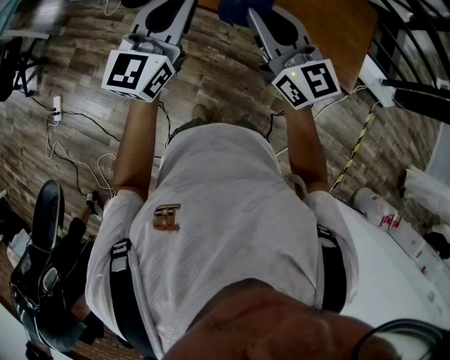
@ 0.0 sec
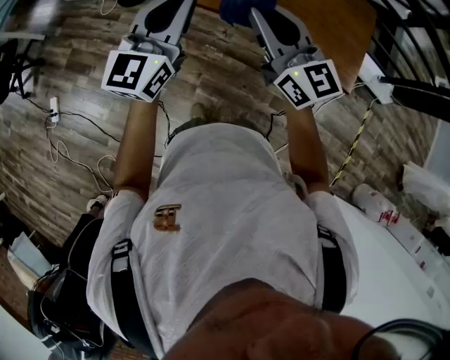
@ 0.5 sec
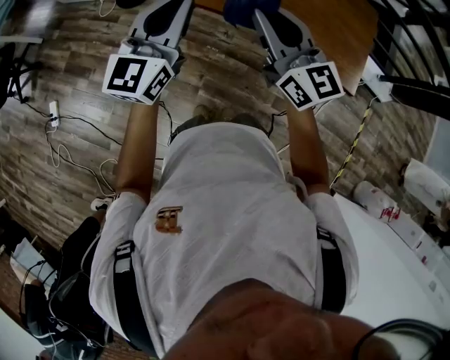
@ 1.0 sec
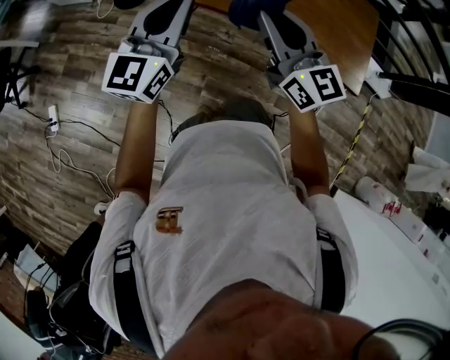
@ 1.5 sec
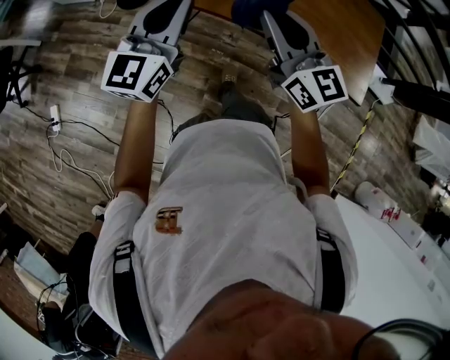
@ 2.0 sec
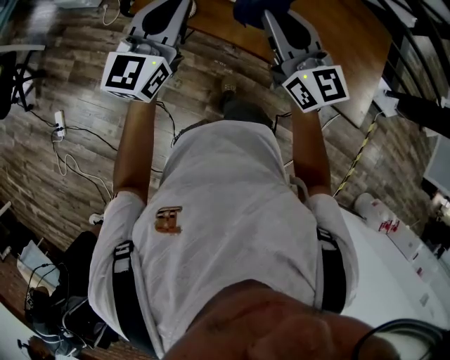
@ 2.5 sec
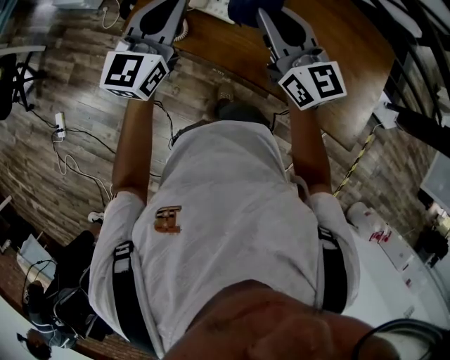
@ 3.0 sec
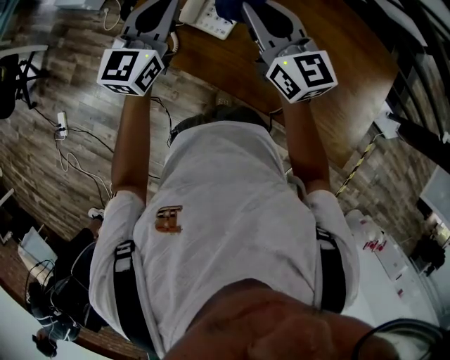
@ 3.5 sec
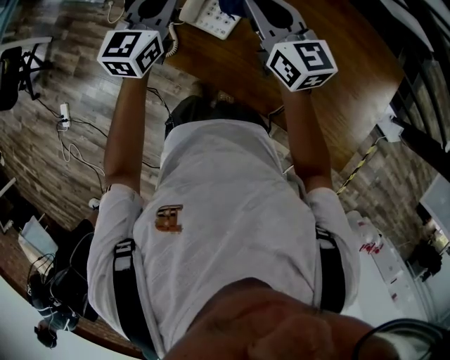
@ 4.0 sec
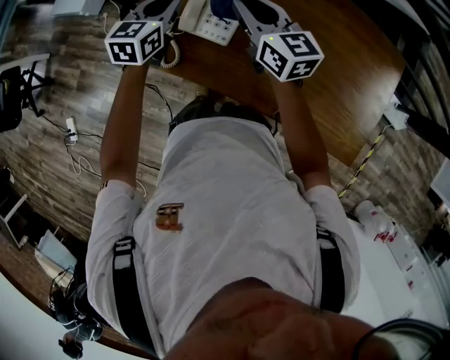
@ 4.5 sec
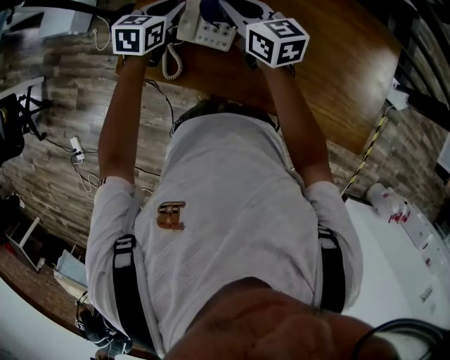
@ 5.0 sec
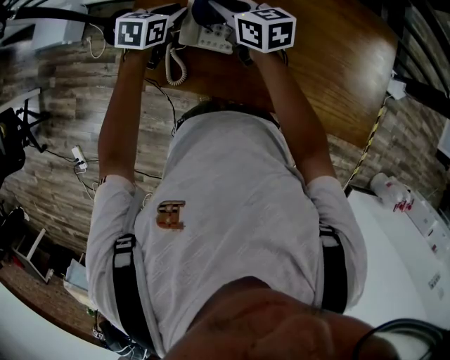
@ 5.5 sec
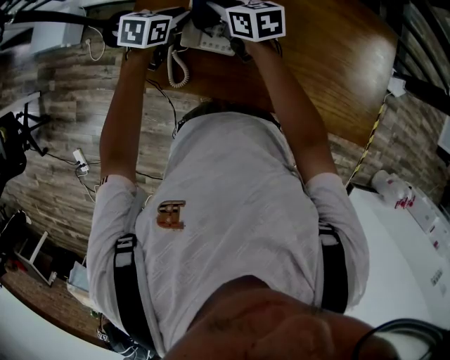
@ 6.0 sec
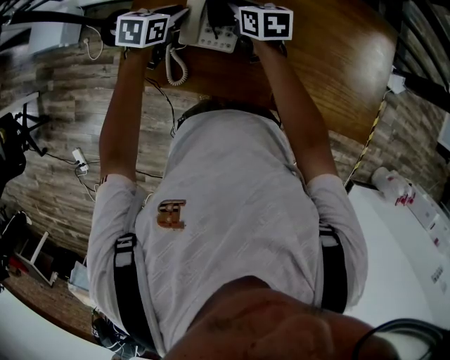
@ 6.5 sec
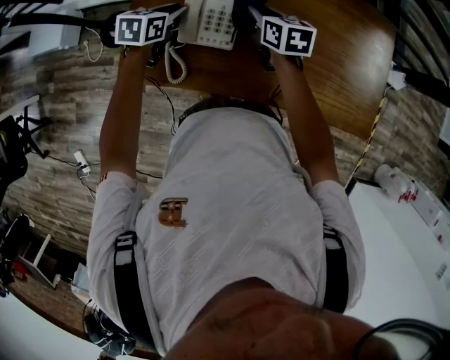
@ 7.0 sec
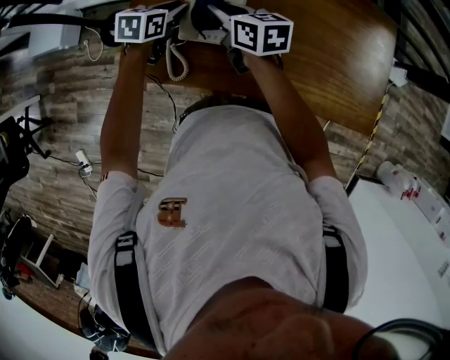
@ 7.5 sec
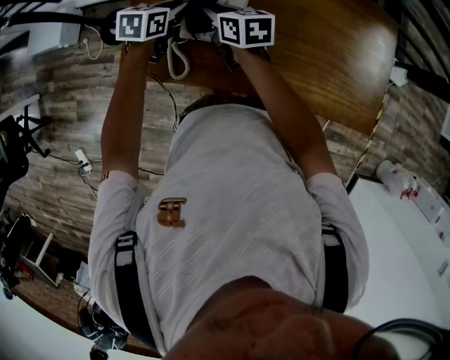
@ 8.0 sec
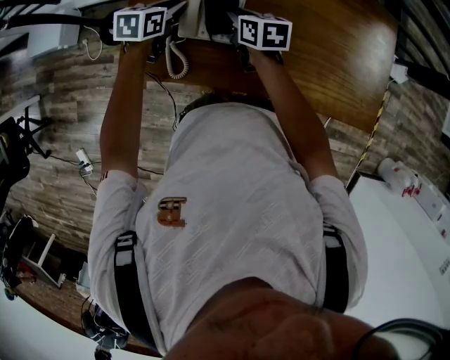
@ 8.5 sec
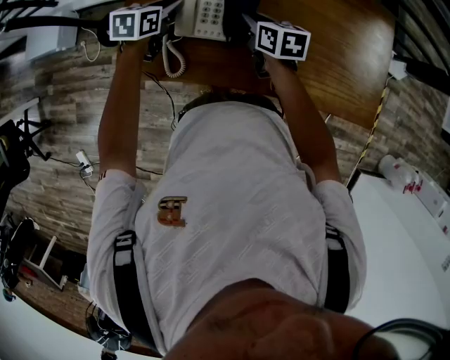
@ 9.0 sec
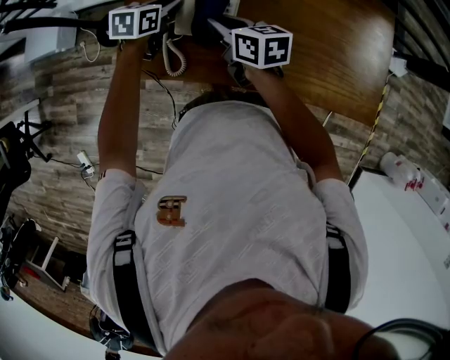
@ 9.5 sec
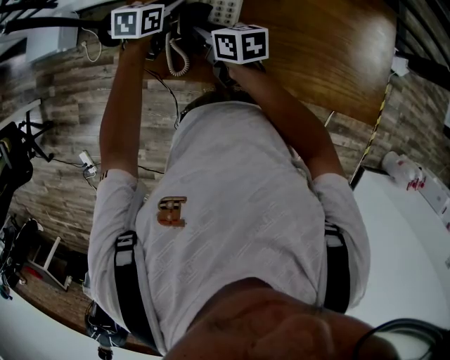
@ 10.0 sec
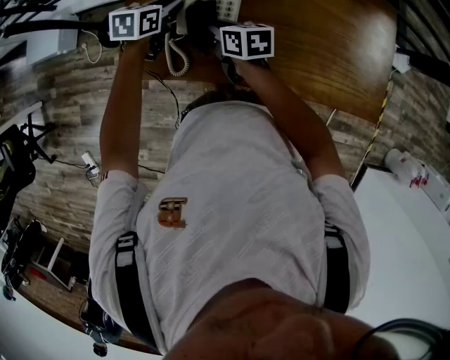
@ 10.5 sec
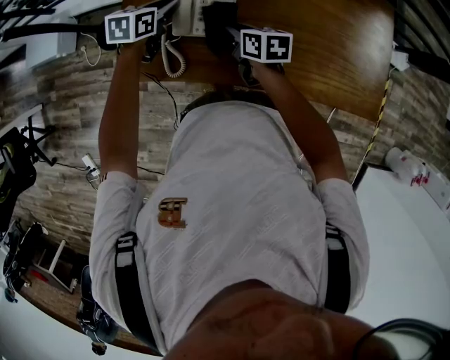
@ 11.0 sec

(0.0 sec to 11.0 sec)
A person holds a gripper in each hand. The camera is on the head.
0.0 sec - 2.0 sec: The left gripper goes approximately 15 cm to the left and forward. Meanwhile the right gripper travels forward and to the left by approximately 15 cm.
2.0 sec - 3.5 sec: The two grippers go some 35 cm forward.
3.5 sec - 5.5 sec: The left gripper travels downward and forward by some 25 cm, and angles its fingers downward, by roughly 40 degrees, while the right gripper heads forward, downward and to the left, covering about 25 cm, and swivels roughly 30 degrees.
5.5 sec - 7.5 sec: The right gripper travels to the right and back again, roughly 10 cm each way.
7.5 sec - 9.0 sec: The right gripper goes some 10 cm to the right and downward.
9.0 sec - 11.0 sec: The right gripper moves about 15 cm to the left and comes back.

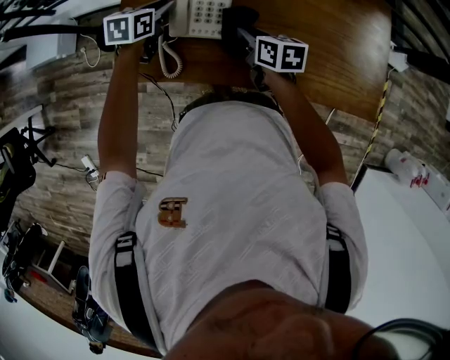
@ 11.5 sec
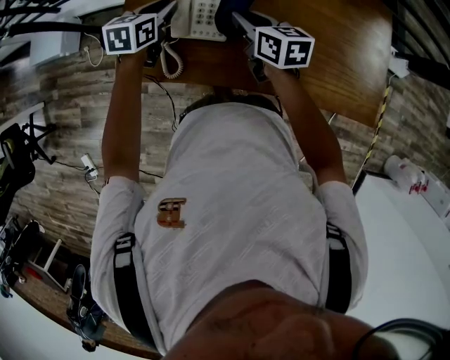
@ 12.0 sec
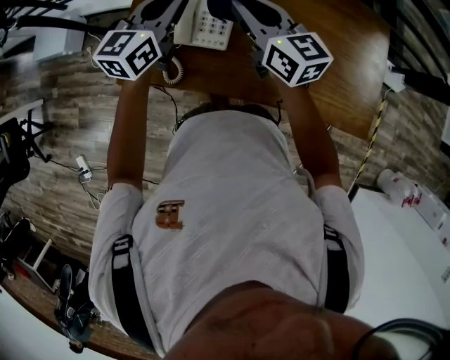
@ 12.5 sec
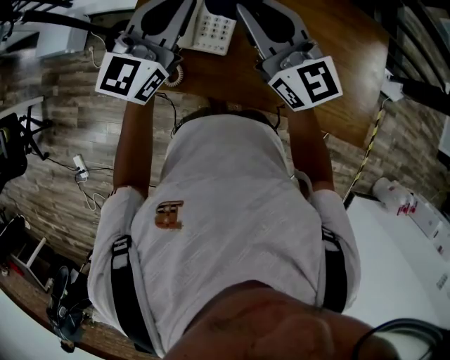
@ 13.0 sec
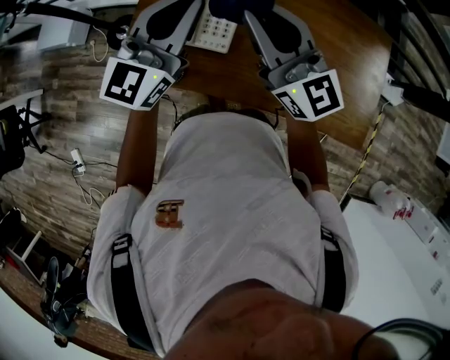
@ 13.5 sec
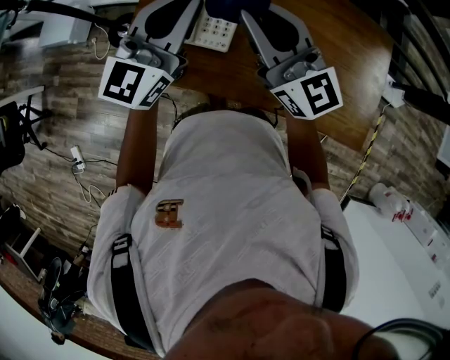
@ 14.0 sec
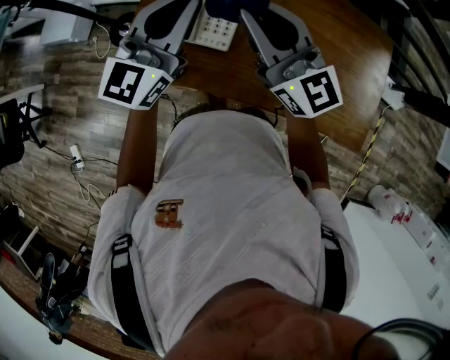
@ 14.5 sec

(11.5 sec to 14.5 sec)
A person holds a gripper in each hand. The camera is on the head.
11.5 sec - 13.0 sec: The two grippers go some 30 cm upward. The left gripper angles its fingers upward, by roughly 50 degrees; the right gripper angles its fingers upward, by roughly 40 degrees.
13.0 sec - 14.5 sec: There are only small adjustments of the grippers.

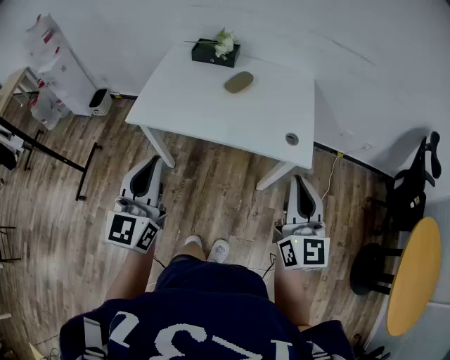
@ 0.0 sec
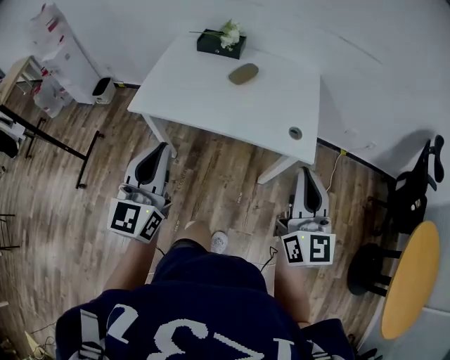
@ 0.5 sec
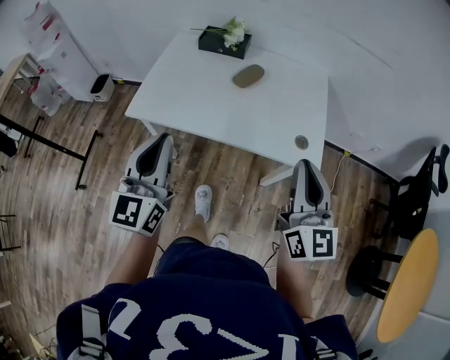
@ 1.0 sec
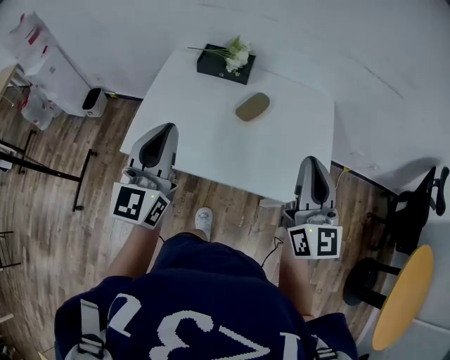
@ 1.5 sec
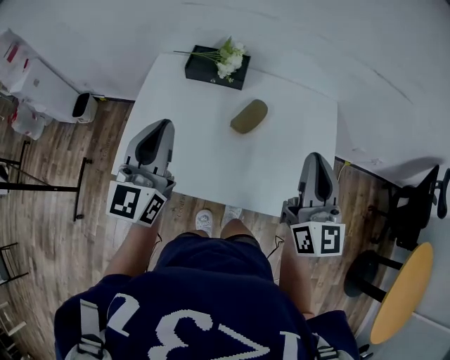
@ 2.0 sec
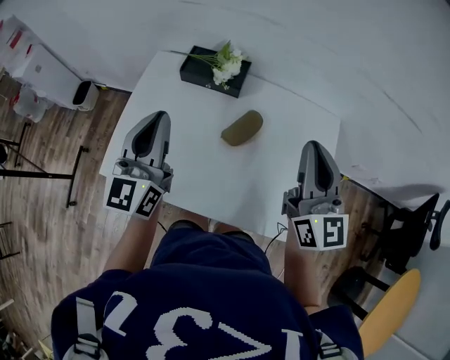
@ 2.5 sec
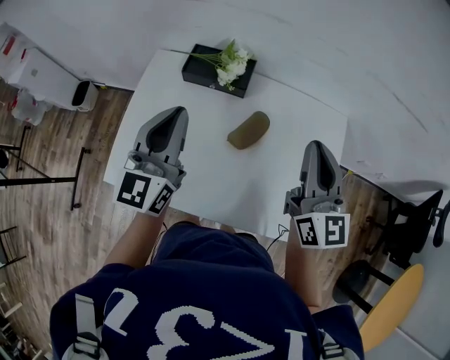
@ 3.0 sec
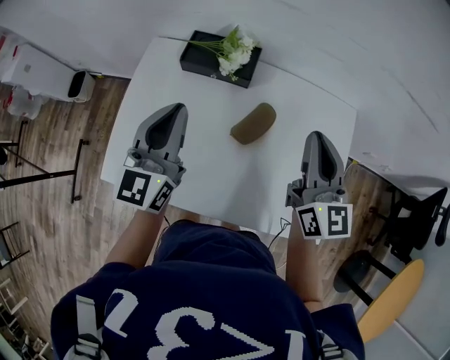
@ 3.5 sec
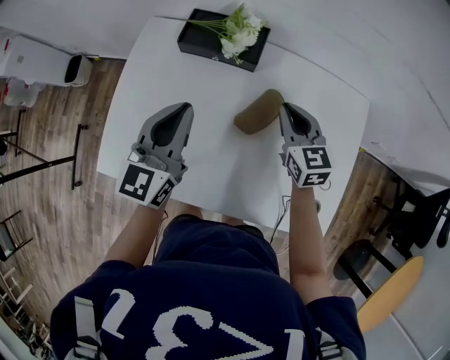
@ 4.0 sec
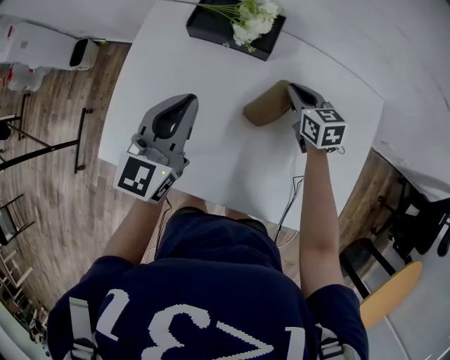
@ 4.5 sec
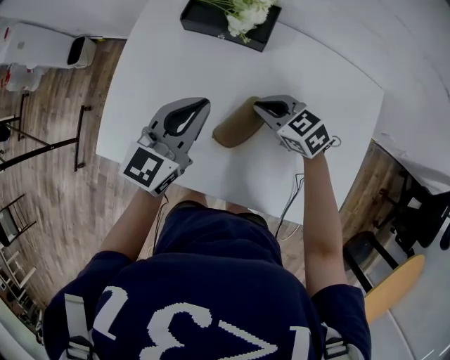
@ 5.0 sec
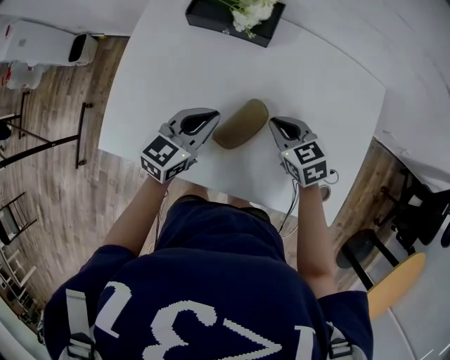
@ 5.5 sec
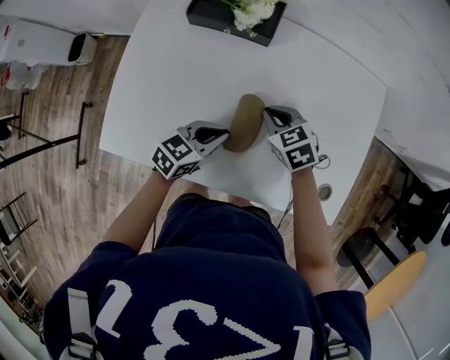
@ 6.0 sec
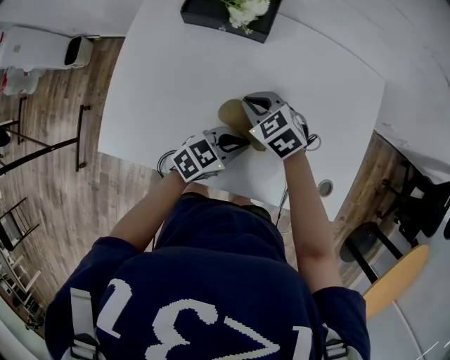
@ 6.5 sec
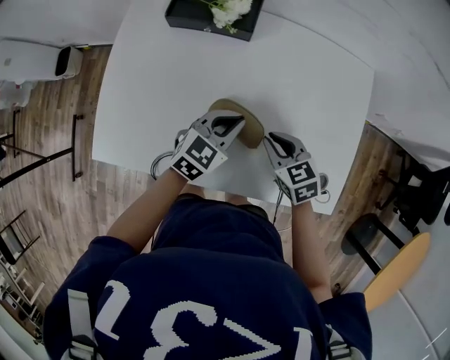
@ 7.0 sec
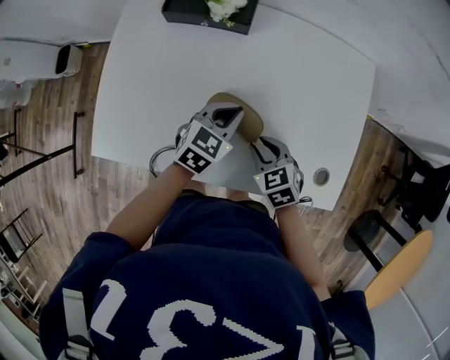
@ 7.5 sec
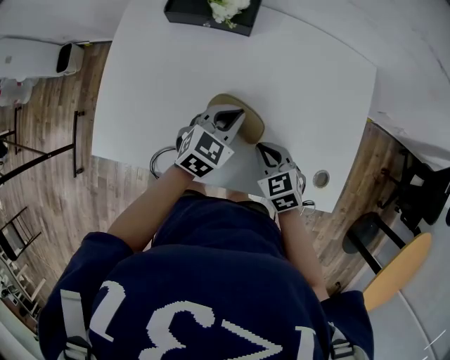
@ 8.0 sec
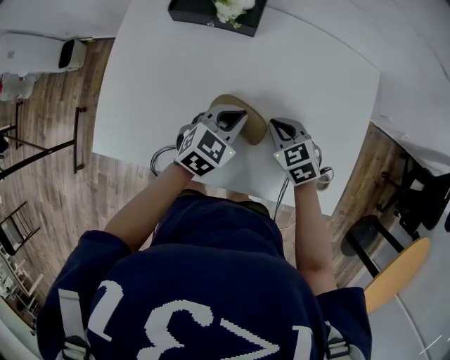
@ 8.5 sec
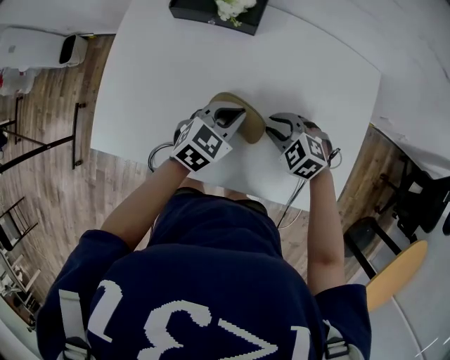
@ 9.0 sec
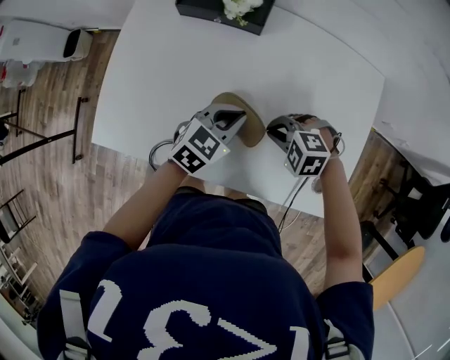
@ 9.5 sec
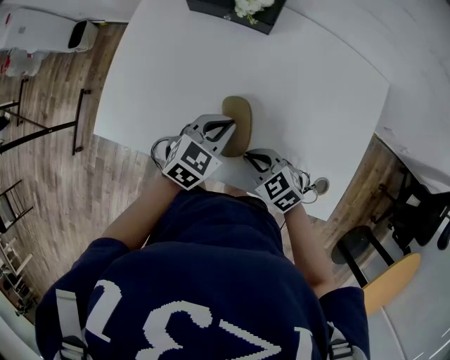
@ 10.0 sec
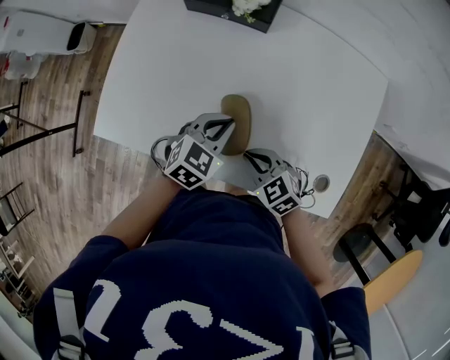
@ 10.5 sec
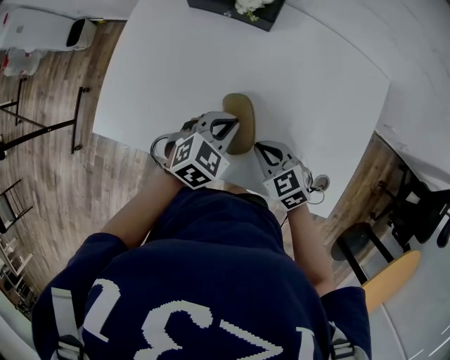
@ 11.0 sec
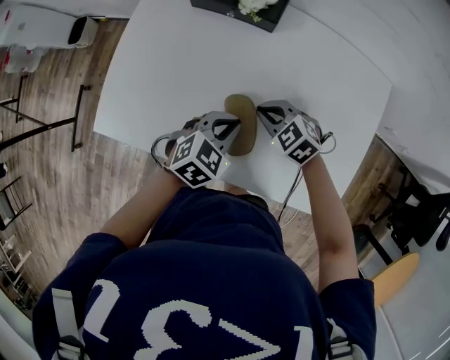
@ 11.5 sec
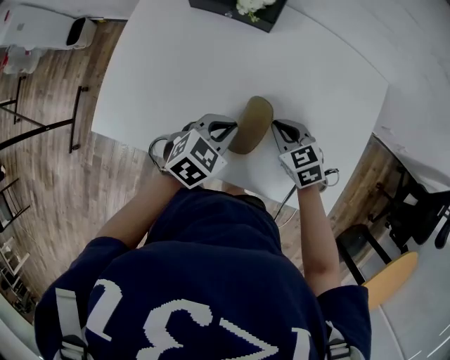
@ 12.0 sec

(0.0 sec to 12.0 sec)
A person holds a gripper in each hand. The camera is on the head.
0.0 sec - 2.0 sec: Both grippers travel together forward, approximately 35 cm.
2.0 sec - 4.0 sec: The left gripper travels forward and downward by roughly 20 cm. Meanwhile the right gripper is displaced forward and downward by about 35 cm, and tilts its fingers approximately 30 degrees downward.
4.0 sec - 6.0 sec: The right gripper is displaced downward by some 10 cm, and changes its angle by roughly 30 degrees. The left gripper moves downward, about 20 cm, and rotates approximately 50 degrees.
6.0 sec - 8.0 sec: The left gripper changes place by approximately 10 cm, and turns by some 20 degrees; the right gripper changes place by about 15 cm, and opens, then closes once more.
8.0 sec - 10.0 sec: The left gripper moves about 5 cm, while the right gripper moves about 5 cm, swivels about 30 degrees, and opens, then closes once more.
10.0 sec - 12.0 sec: The right gripper heads forward and to the right, covering approximately 10 cm.
